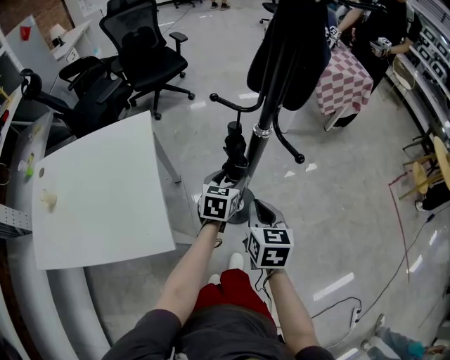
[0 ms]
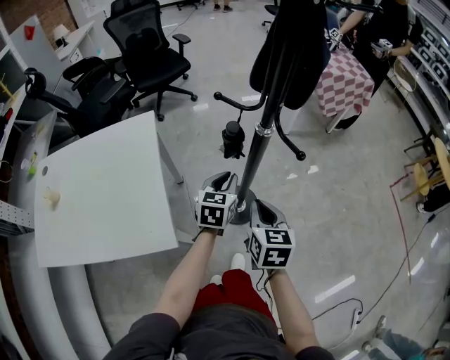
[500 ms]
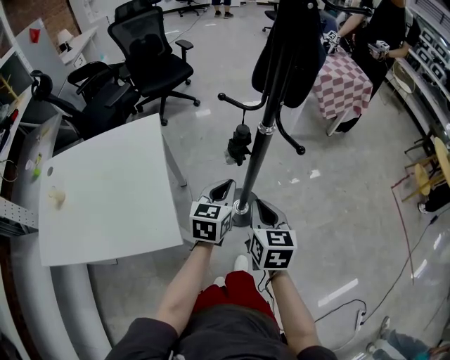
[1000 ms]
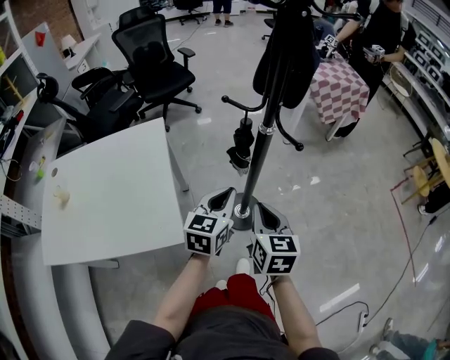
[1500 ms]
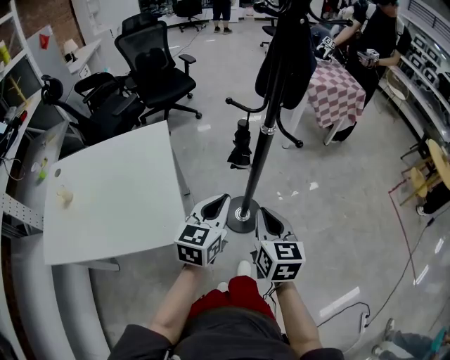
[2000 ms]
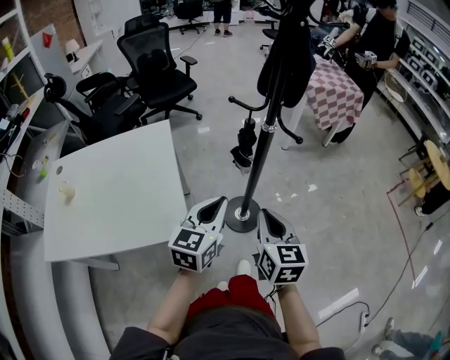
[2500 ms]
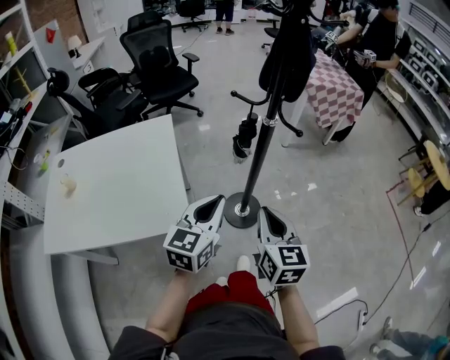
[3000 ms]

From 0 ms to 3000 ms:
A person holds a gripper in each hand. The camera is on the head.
From 0 ms to 1500 ms: The right gripper travels backward and upward by approximately 10 cm. Meanwhile the left gripper is displaced backward and upward by approximately 15 cm, and closes up.
From 1500 ms to 3000 ms: The left gripper moves backward and upward, some 15 cm. Meanwhile the right gripper travels backward by roughly 10 cm.

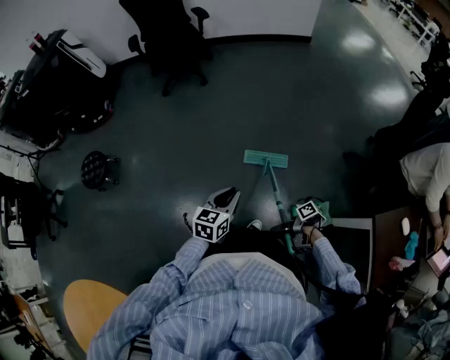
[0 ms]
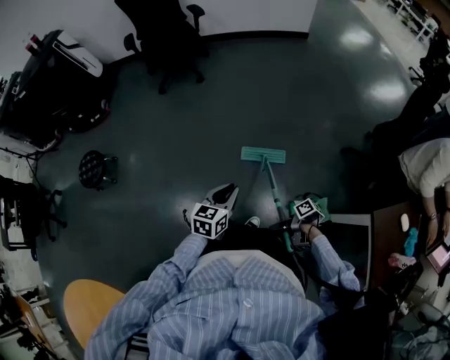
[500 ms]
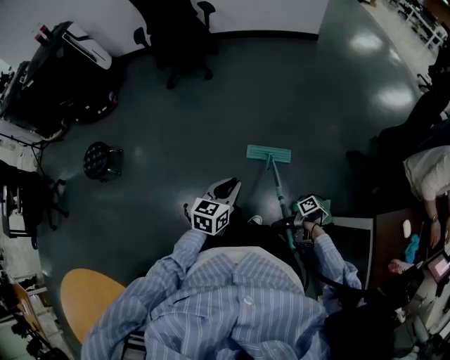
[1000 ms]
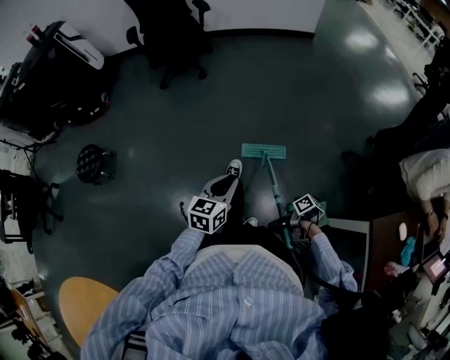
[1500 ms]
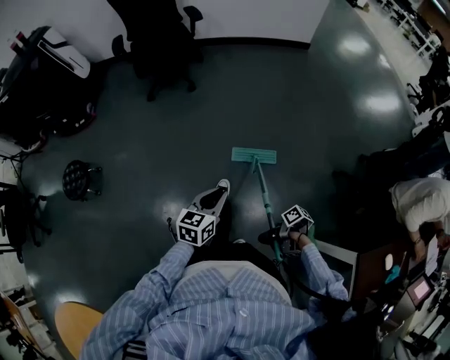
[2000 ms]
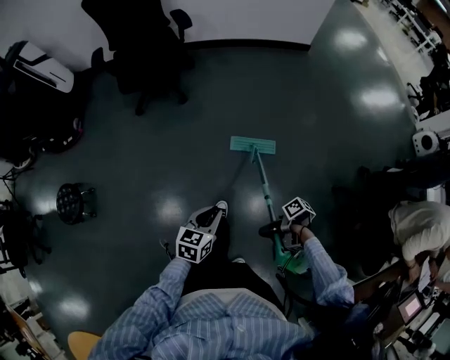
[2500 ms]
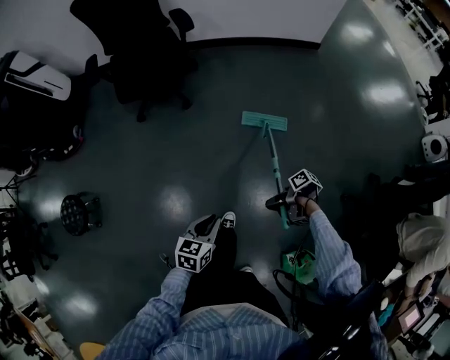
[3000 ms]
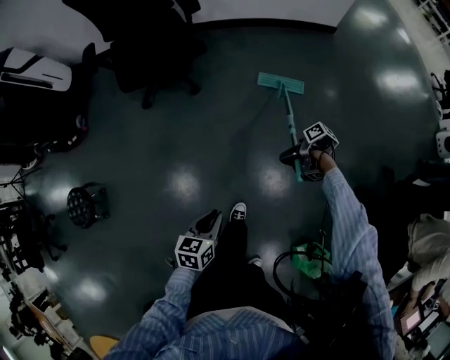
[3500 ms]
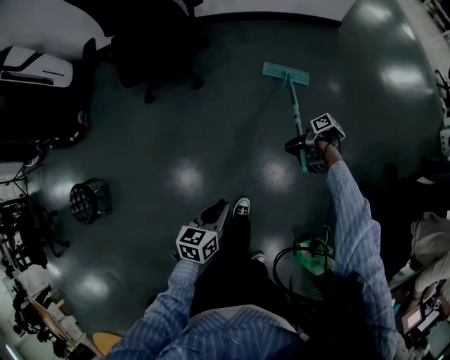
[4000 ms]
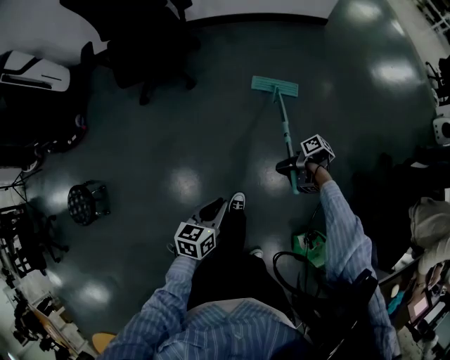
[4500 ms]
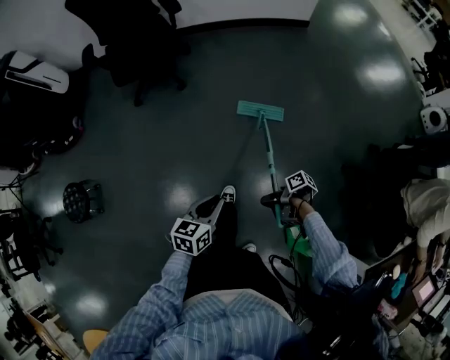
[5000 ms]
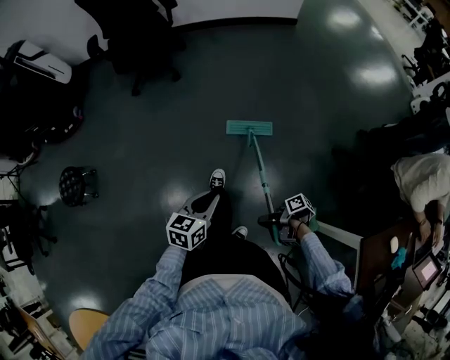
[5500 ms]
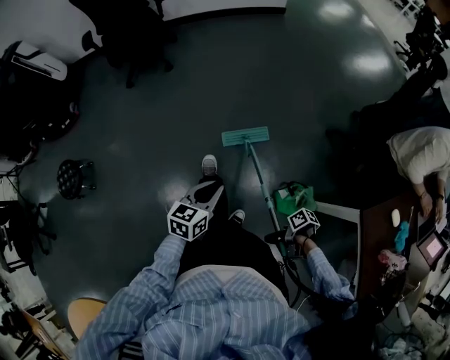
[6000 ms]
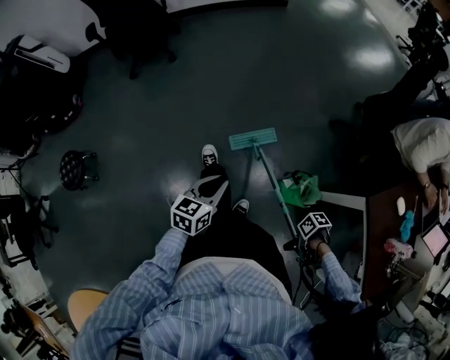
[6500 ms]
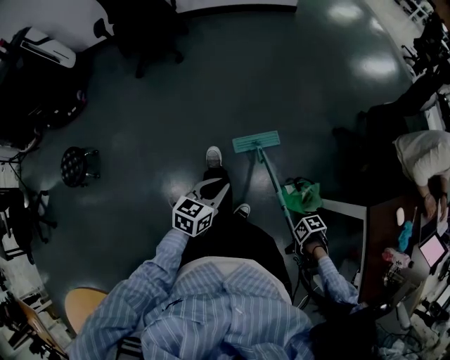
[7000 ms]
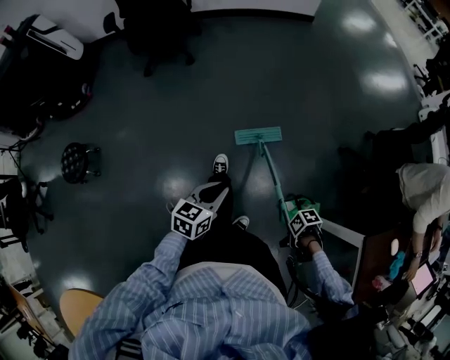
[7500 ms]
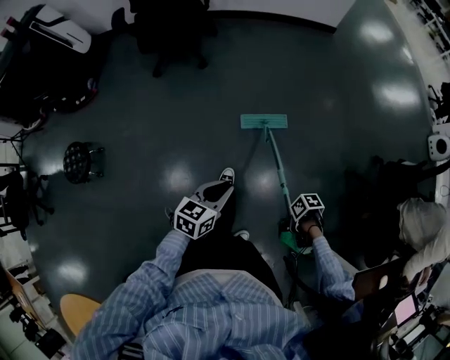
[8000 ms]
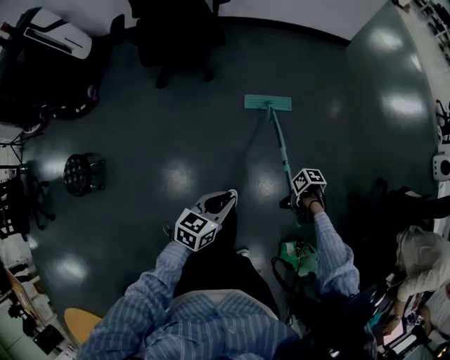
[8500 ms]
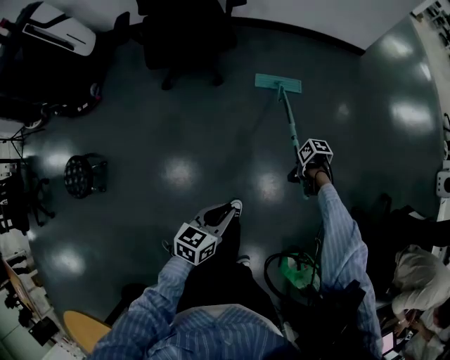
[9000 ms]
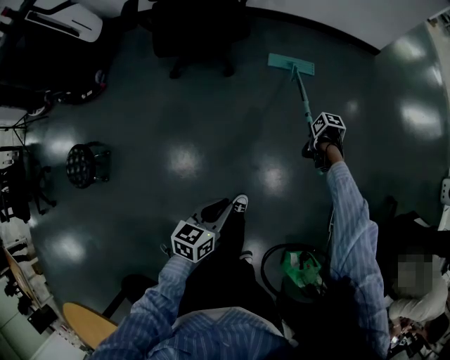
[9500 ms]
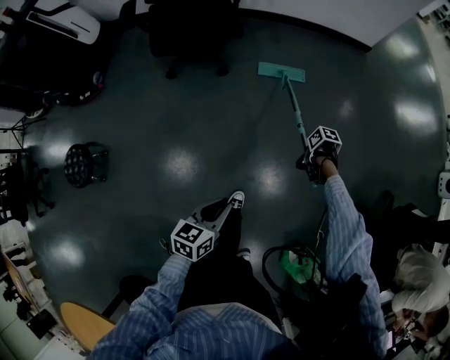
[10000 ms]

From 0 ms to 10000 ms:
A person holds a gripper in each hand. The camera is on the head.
From 0 ms to 2000 ms: The left gripper moves some 15 cm.
From 2000 ms to 4000 ms: The left gripper ends up roughly 35 cm from where it was.
From 4000 ms to 6000 ms: The left gripper moves approximately 40 cm.
From 6000 ms to 8000 ms: The left gripper shifts by about 20 cm.
From 8000 ms to 10000 ms: The left gripper shifts by roughly 20 cm.

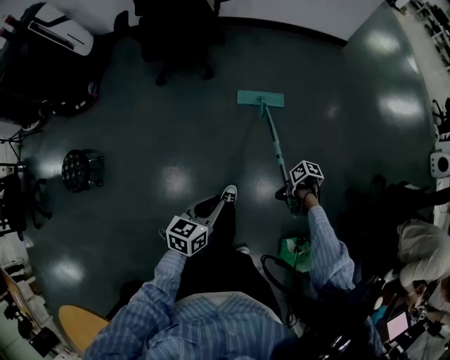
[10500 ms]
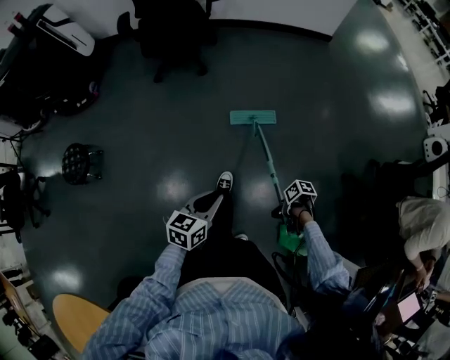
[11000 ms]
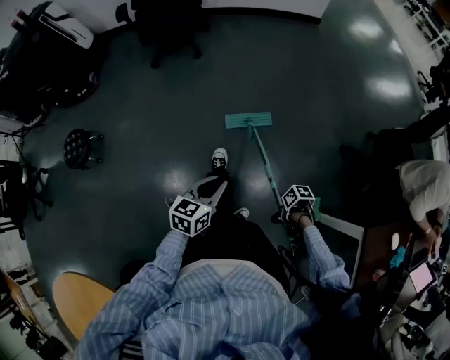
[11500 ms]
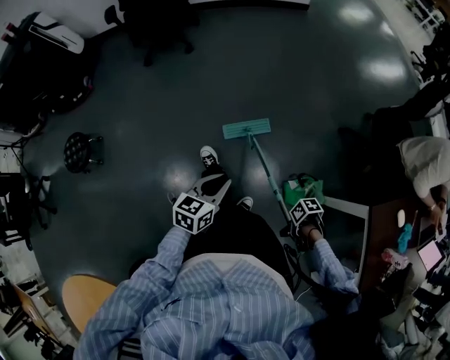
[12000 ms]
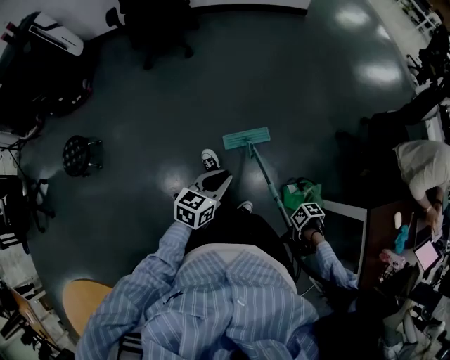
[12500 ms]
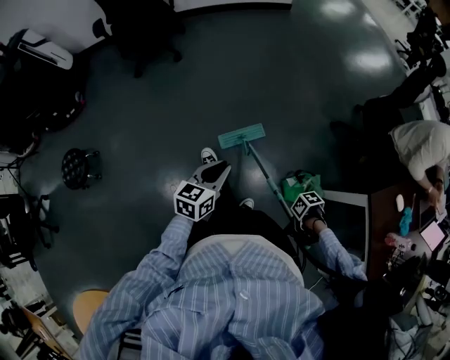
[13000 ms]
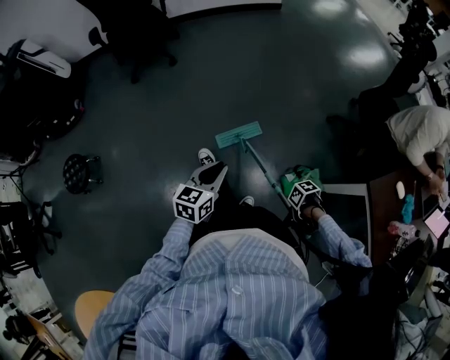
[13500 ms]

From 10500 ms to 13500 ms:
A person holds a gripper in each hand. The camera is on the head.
From 10500 ms to 12000 ms: The left gripper ends up some 35 cm from where it was.

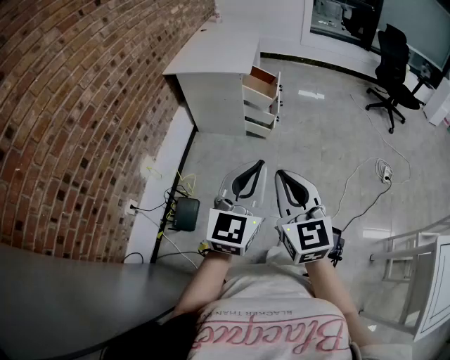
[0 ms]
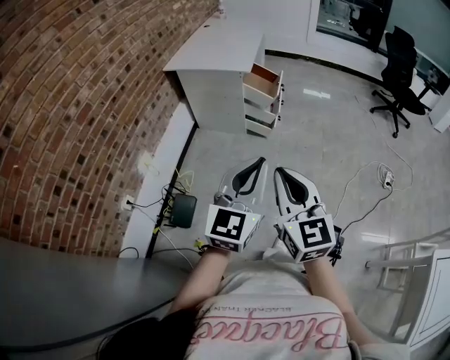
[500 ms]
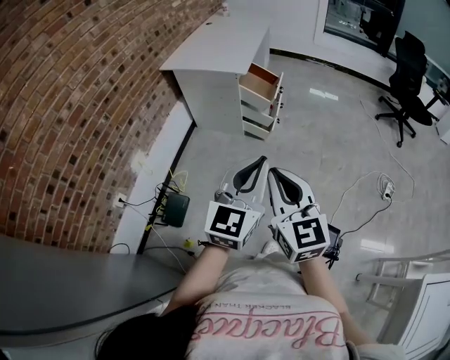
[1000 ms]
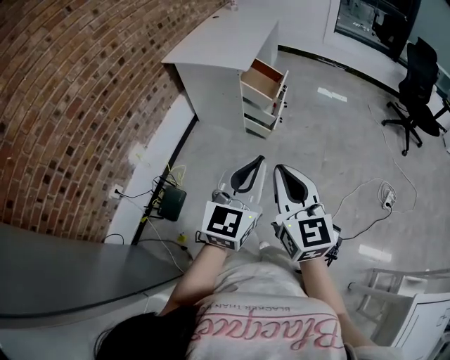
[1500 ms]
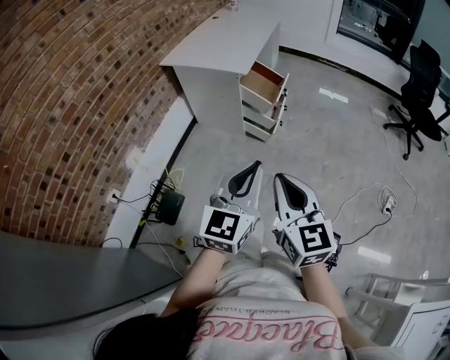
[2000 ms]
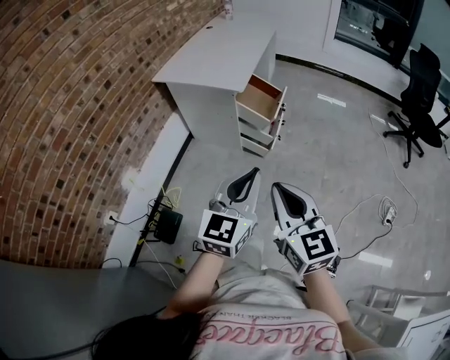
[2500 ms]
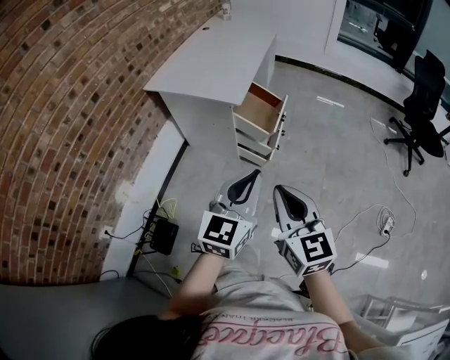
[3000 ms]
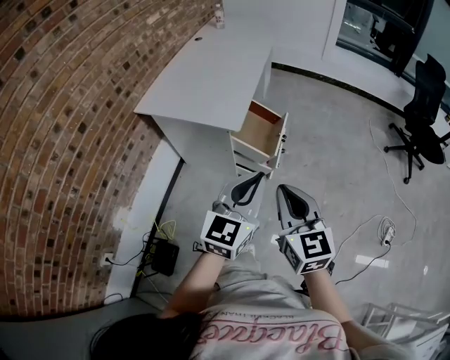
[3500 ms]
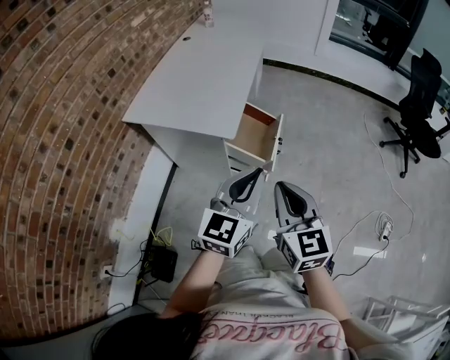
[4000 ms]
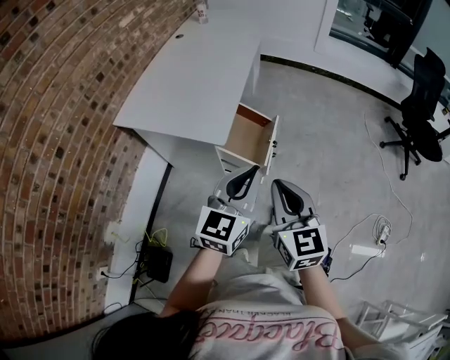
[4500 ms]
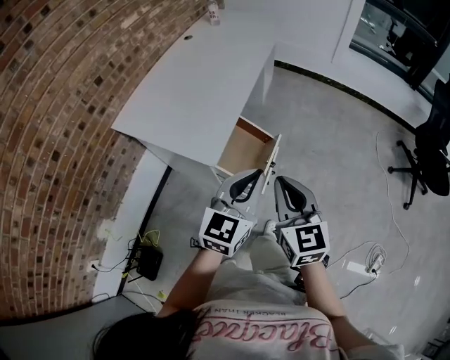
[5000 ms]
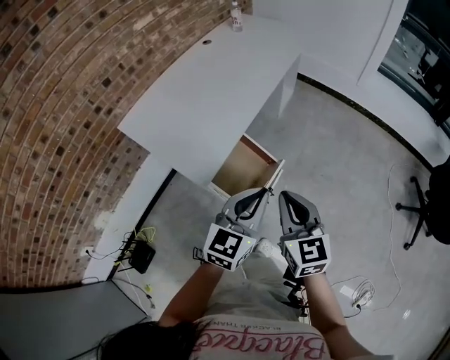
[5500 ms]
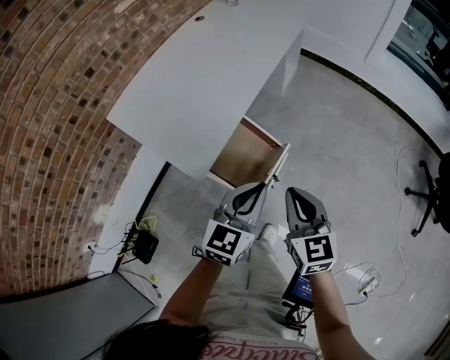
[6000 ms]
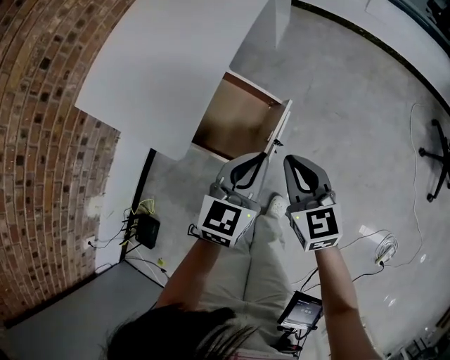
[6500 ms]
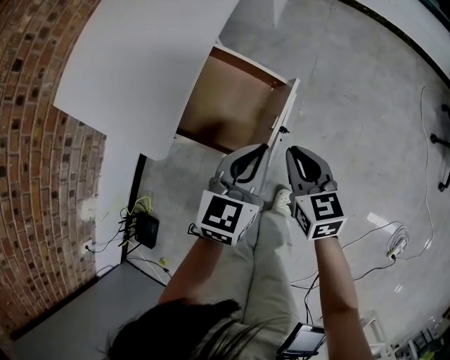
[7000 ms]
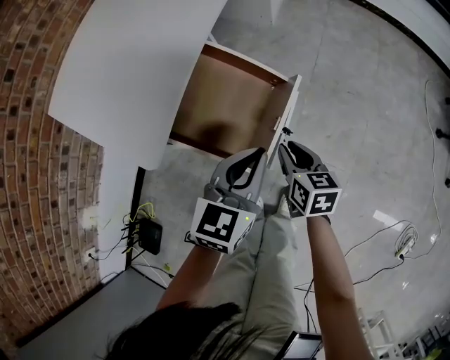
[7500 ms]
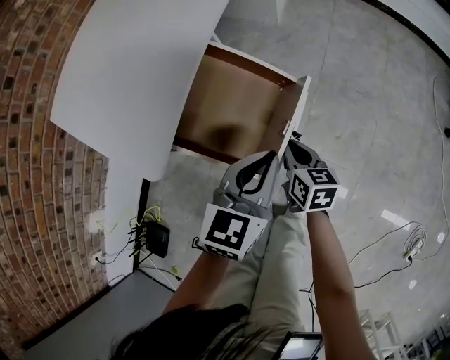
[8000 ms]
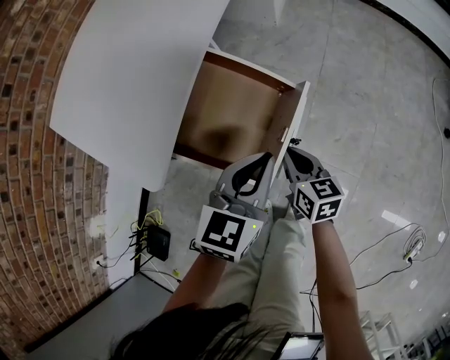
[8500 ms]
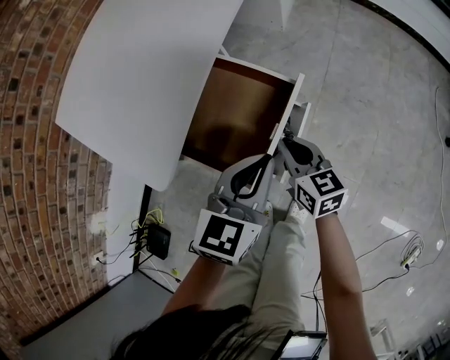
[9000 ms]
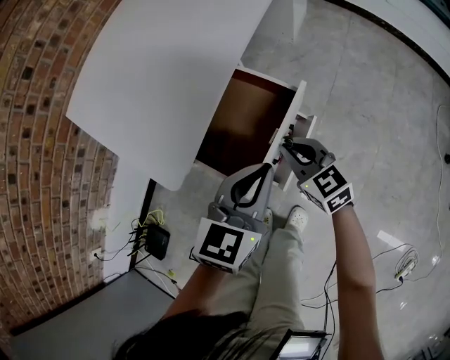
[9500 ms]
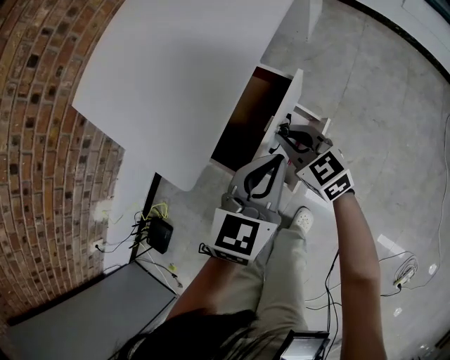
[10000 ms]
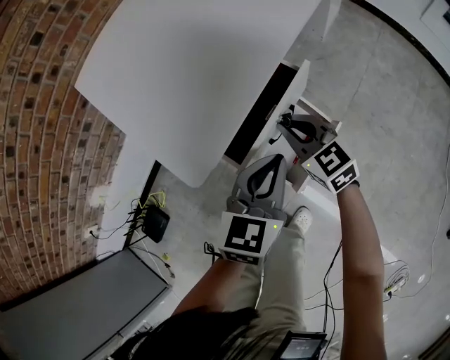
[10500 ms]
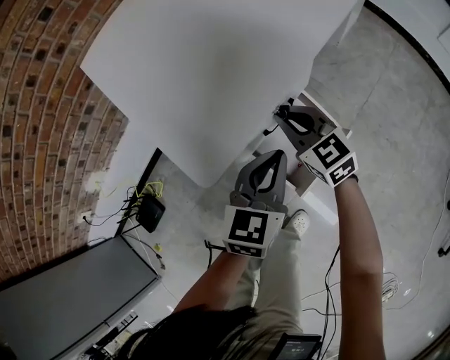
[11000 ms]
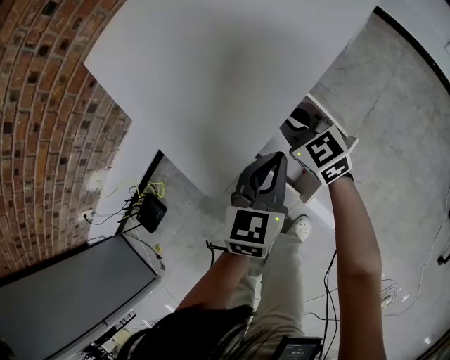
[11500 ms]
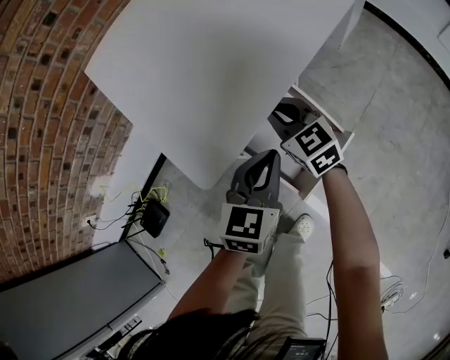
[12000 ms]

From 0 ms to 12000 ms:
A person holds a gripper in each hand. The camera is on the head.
From 0 ms to 2000 ms: Both grippers travel together forward and to the right, approximately 20 cm.
From 2000 ms to 4000 ms: Both grippers move forward, approximately 40 cm.
From 4000 ms to 6000 ms: The left gripper moves forward, to the right and downward, approximately 30 cm, while the right gripper shifts roughly 30 cm forward and to the right.
From 6000 ms to 8000 ms: The right gripper travels downward by approximately 40 cm, and swivels some 30 degrees. The left gripper shifts some 25 cm downward.
From 8000 ms to 10000 ms: The left gripper ends up some 5 cm from where it was. Meanwhile the right gripper is displaced upward, to the left and forward by approximately 15 cm, and twists approximately 40 degrees counterclockwise, seen from behind.
From 10000 ms to 12000 ms: The right gripper moves forward and to the left, approximately 15 cm. The left gripper travels to the left and downward by approximately 10 cm.
